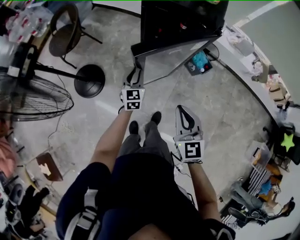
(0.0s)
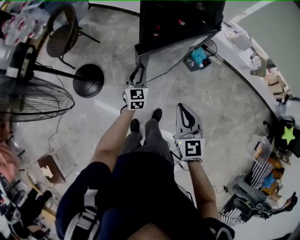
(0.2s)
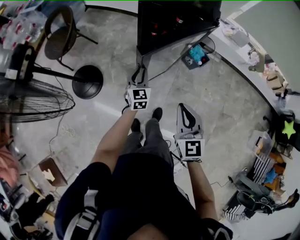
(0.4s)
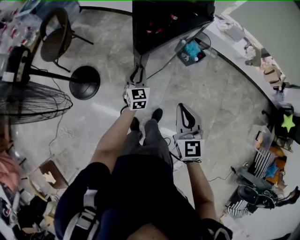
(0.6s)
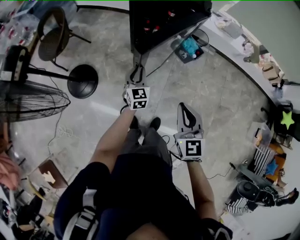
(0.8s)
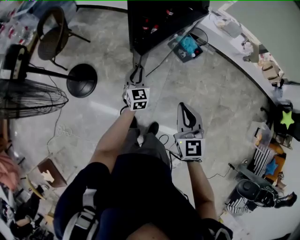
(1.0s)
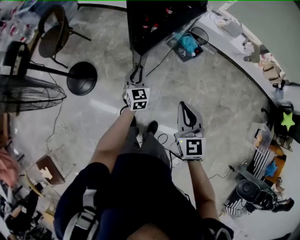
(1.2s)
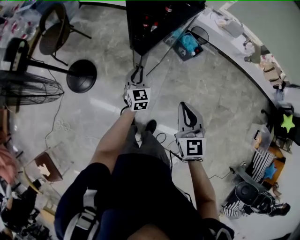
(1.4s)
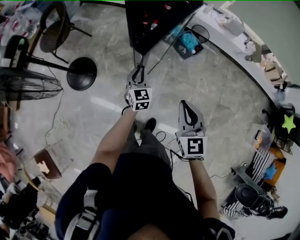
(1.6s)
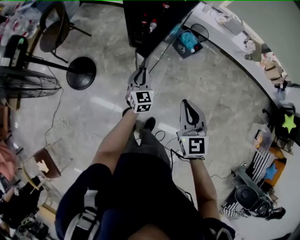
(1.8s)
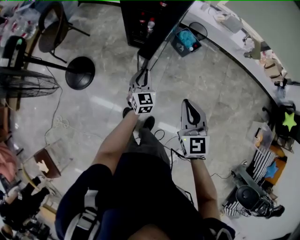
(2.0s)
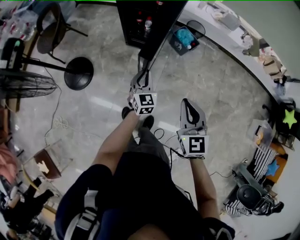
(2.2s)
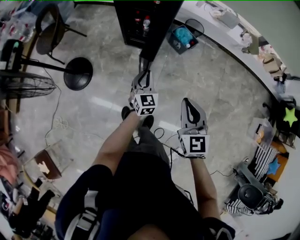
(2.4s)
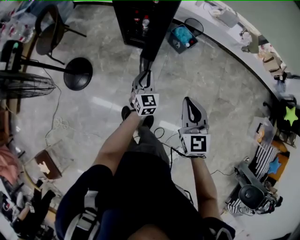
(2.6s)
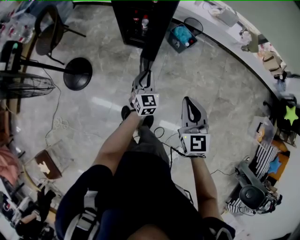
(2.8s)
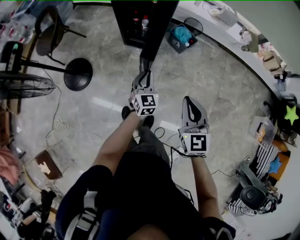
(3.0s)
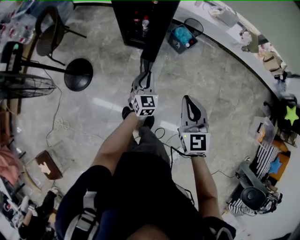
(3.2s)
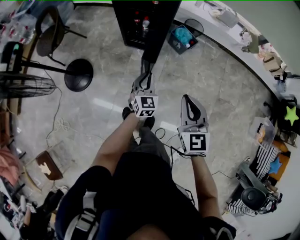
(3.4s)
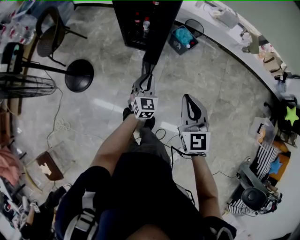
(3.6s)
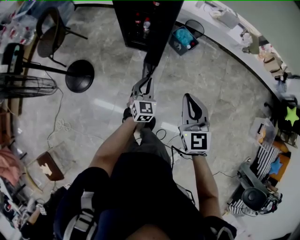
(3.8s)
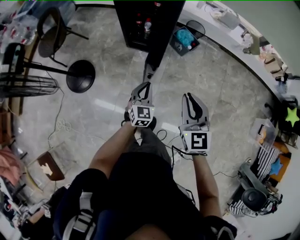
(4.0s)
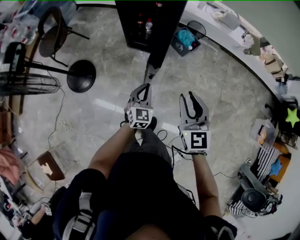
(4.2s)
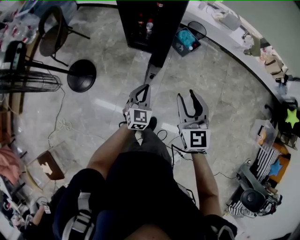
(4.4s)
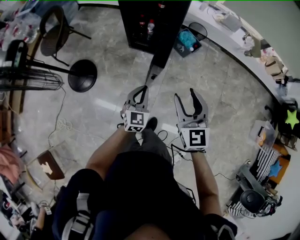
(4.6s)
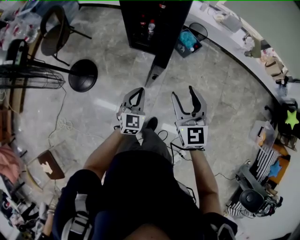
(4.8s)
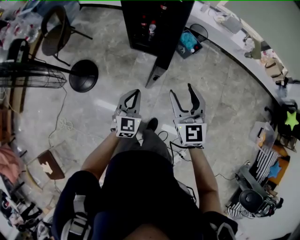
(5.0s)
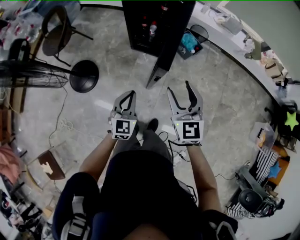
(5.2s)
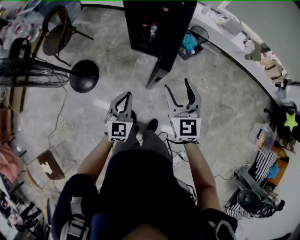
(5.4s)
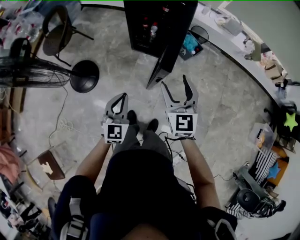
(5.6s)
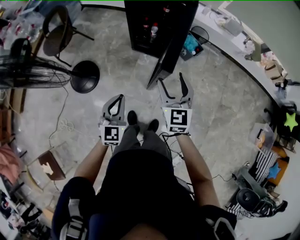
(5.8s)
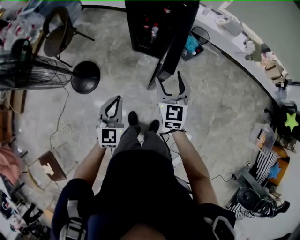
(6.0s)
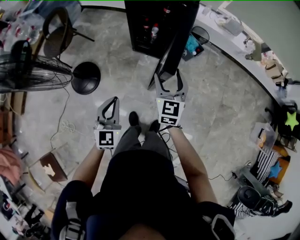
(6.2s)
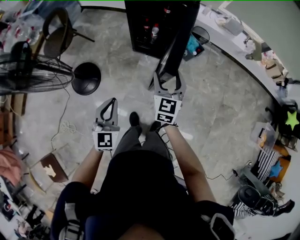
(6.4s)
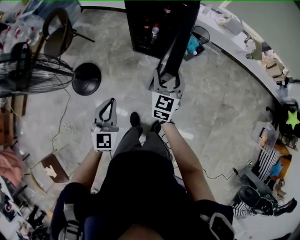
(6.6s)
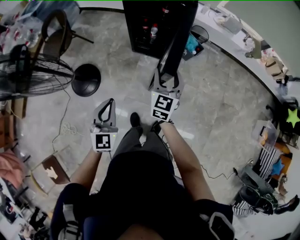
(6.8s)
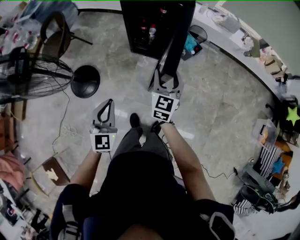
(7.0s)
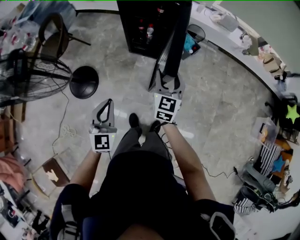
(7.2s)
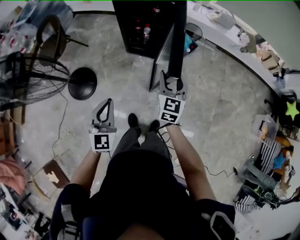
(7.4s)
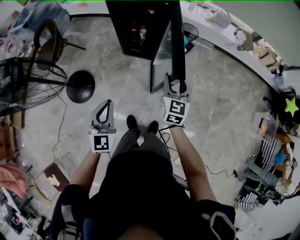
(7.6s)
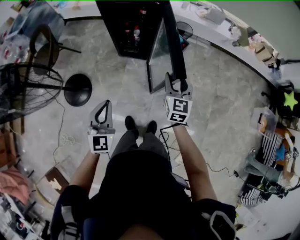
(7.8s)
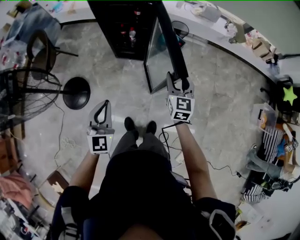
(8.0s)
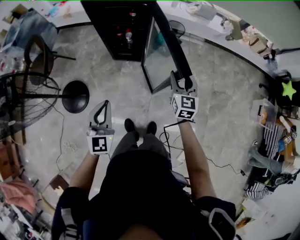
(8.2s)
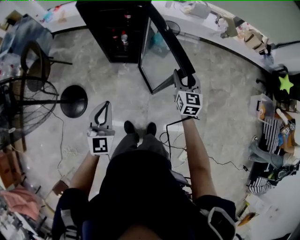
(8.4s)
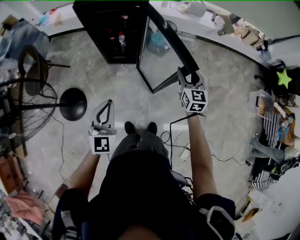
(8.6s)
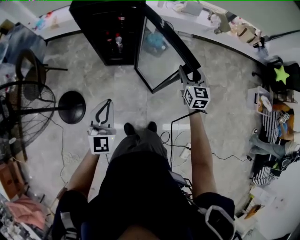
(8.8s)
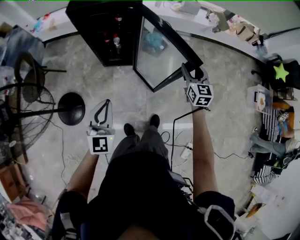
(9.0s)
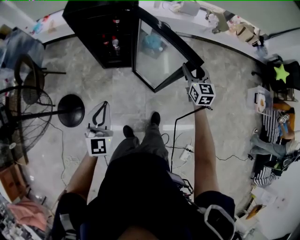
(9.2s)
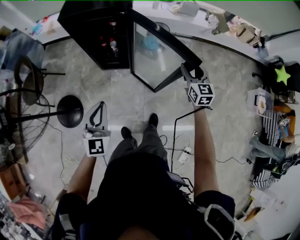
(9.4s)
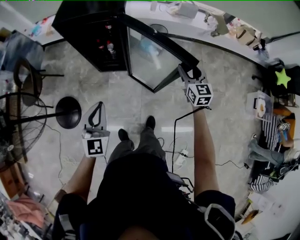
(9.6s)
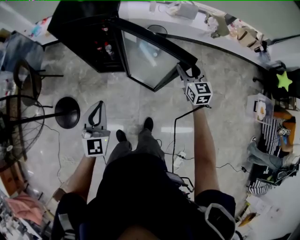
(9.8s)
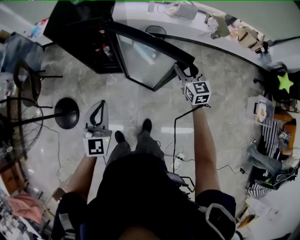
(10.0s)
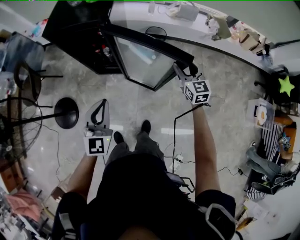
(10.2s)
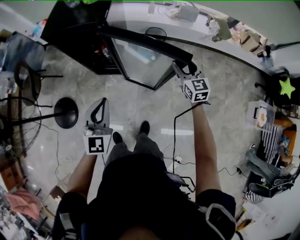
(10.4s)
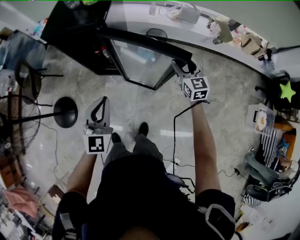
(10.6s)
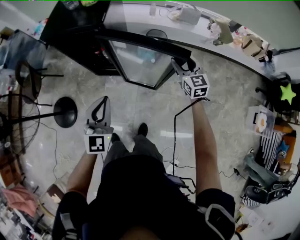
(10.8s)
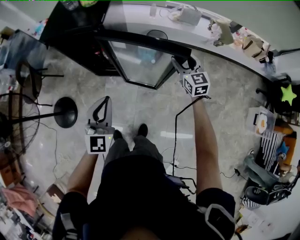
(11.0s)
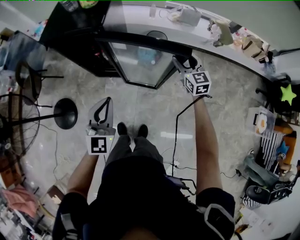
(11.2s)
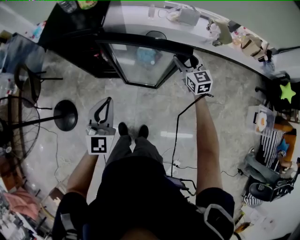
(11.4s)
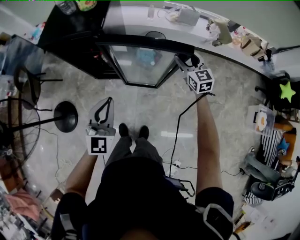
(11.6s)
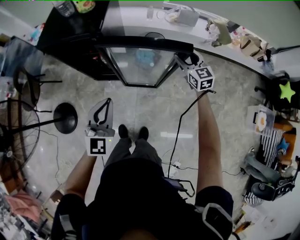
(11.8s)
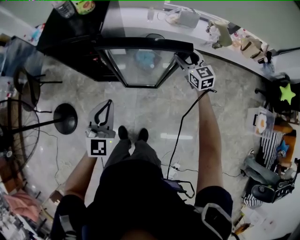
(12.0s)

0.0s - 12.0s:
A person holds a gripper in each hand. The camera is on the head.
0.0s - 1.6s: The grippers both shift backward and to the right by some 15 cm.
1.6s - 3.0s: The left gripper travels to the right and backward by some 10 cm; the right gripper moves to the right, some 10 cm.
3.0s - 4.4s: The right gripper changes place by about 5 cm, and opens its fingers. Meanwhile the left gripper moves backward, approximately 5 cm.
4.4s - 6.0s: The right gripper heads to the left and forward, covering roughly 15 cm, and opens up. The left gripper is displaced to the left and upward by roughly 20 cm.
6.0s - 7.6s: The right gripper heads to the right, covering some 10 cm.
7.6s - 9.0s: The right gripper is displaced to the right and forward by approximately 20 cm. Meanwhile the left gripper moves forward, about 5 cm.
9.0s - 10.4s: The left gripper heads to the right and forward, covering some 25 cm. The right gripper shifts some 20 cm forward and to the right.
10.4s - 12.0s: The right gripper is displaced forward by roughly 10 cm; the left gripper shifts approximately 5 cm forward.

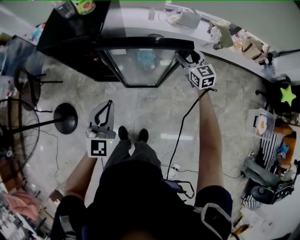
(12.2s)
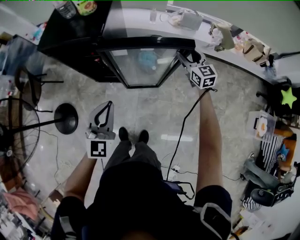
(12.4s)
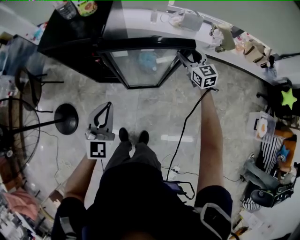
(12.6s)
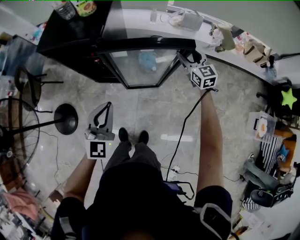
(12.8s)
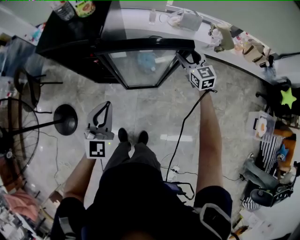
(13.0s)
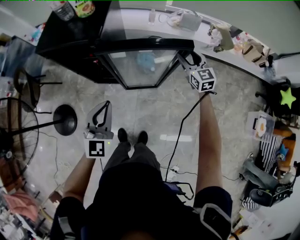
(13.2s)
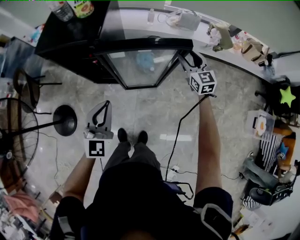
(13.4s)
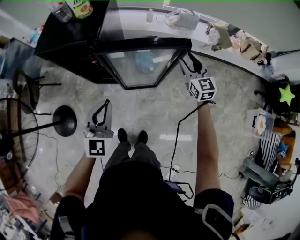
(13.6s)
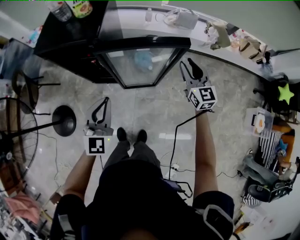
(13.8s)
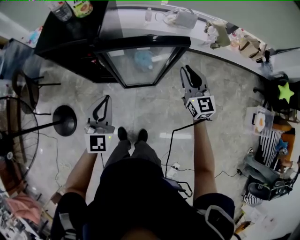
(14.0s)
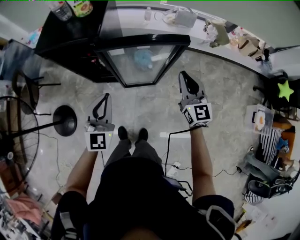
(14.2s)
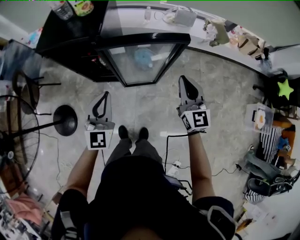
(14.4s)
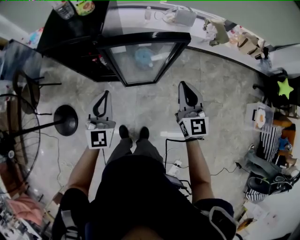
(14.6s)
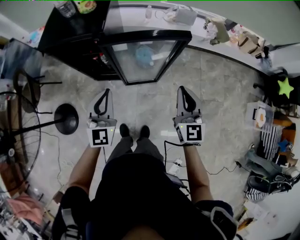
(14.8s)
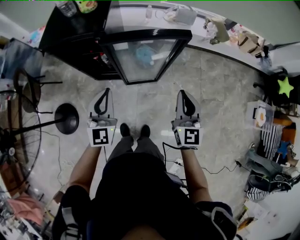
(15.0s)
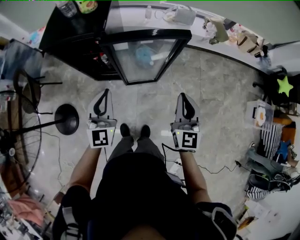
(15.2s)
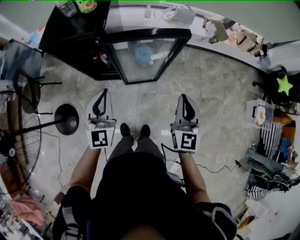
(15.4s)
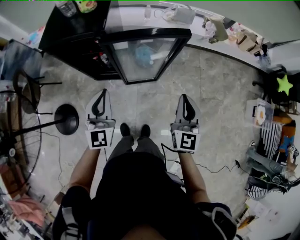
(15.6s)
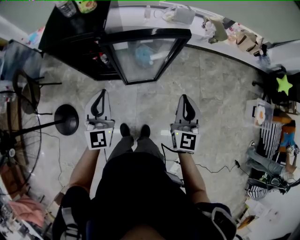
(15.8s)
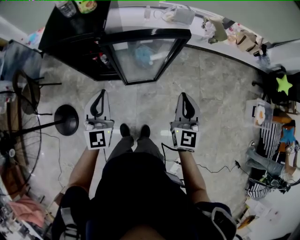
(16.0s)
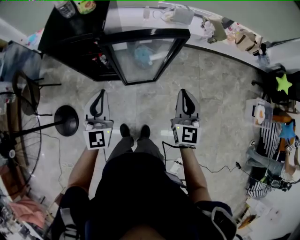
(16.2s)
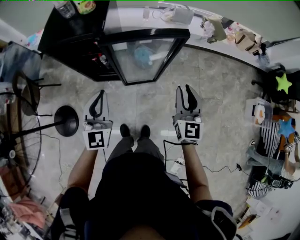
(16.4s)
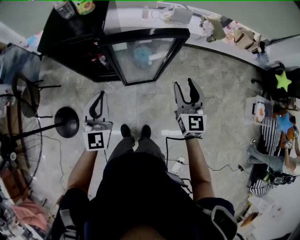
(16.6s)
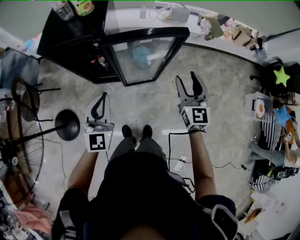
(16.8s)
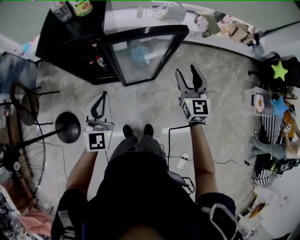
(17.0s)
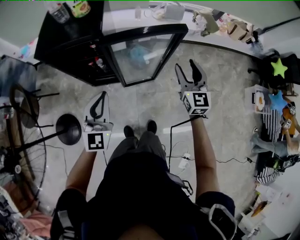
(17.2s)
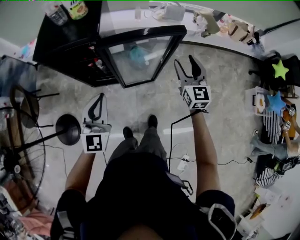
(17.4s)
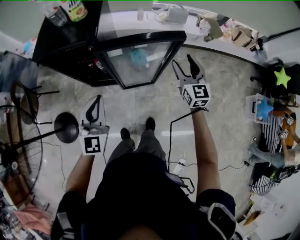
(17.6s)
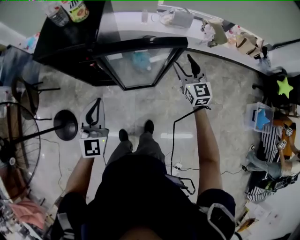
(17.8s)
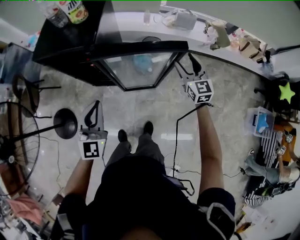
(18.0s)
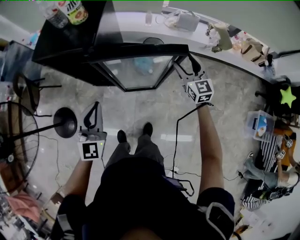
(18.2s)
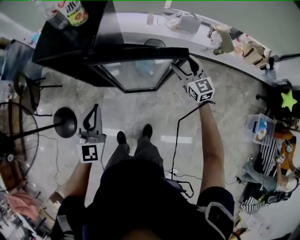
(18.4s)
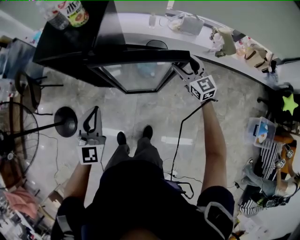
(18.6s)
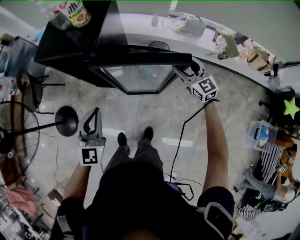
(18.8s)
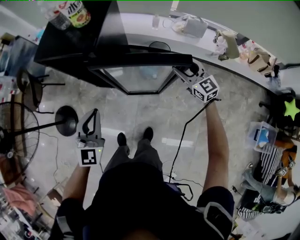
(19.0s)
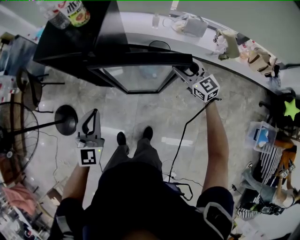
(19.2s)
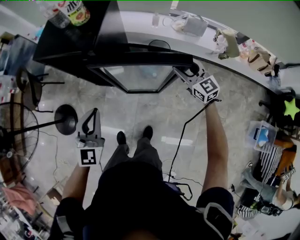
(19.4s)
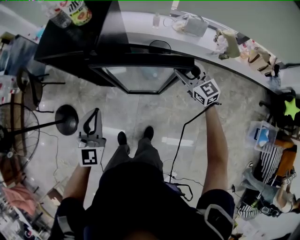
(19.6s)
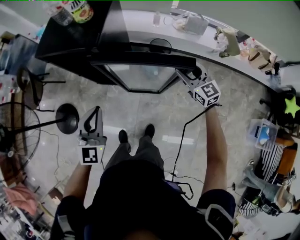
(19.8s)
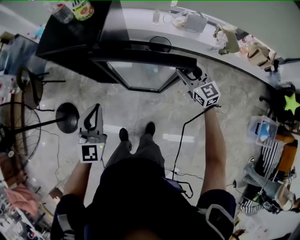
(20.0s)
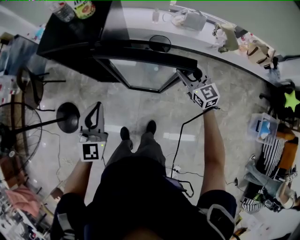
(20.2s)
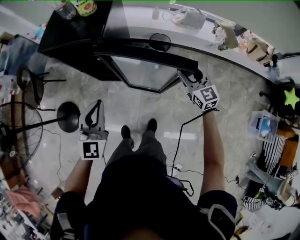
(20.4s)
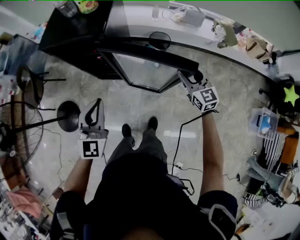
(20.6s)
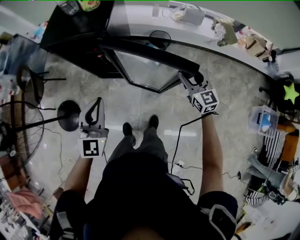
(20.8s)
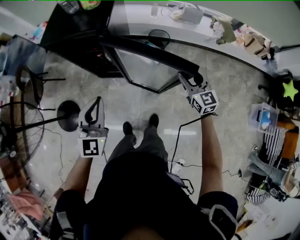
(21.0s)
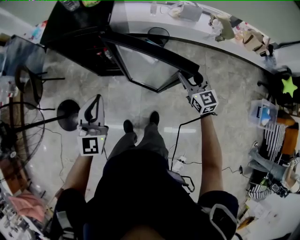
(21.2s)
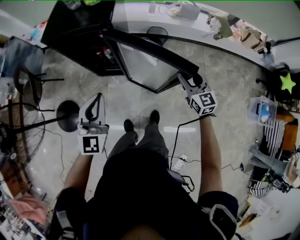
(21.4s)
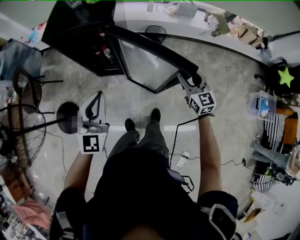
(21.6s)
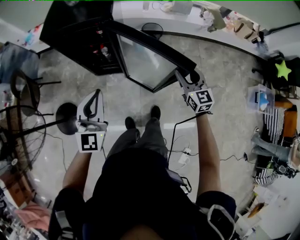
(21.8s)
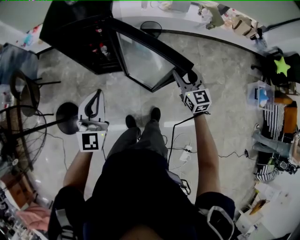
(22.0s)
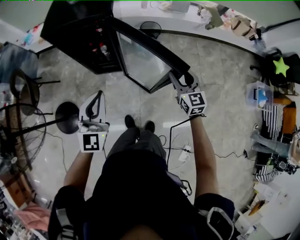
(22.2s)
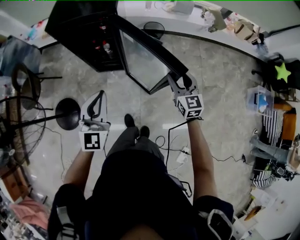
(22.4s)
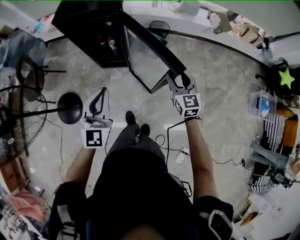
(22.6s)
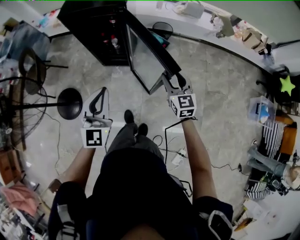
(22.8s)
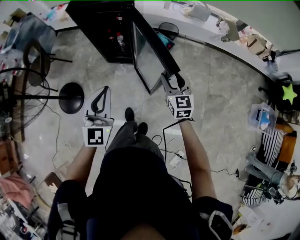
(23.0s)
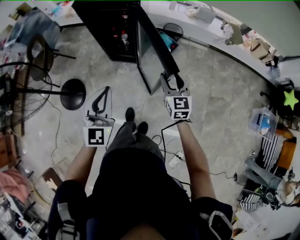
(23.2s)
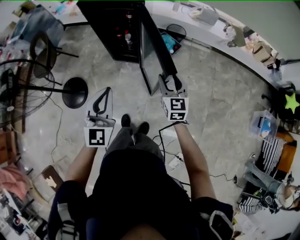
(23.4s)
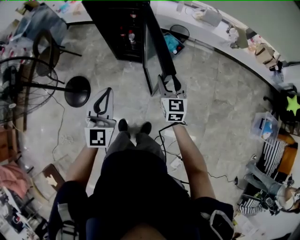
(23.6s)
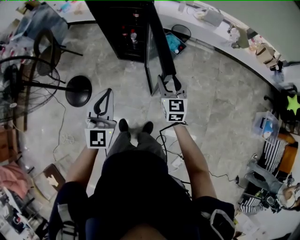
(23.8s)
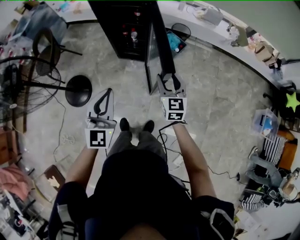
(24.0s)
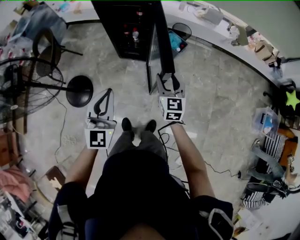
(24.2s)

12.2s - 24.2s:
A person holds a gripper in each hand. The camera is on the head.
12.2s - 13.8s: The right gripper goes approximately 5 cm backward.
13.8s - 15.2s: The right gripper travels backward by about 20 cm.
15.2s - 16.6s: The right gripper opens its fingers.
16.6s - 18.2s: The right gripper goes approximately 20 cm forward. The left gripper goes roughly 5 cm forward.
19.8s - 21.2s: The left gripper moves to the left and backward, roughly 10 cm; the right gripper is displaced backward and to the left by roughly 15 cm.
21.2s - 22.6s: The left gripper shifts some 10 cm backward; the right gripper travels backward and to the left by about 15 cm.
22.6s - 24.2s: The left gripper goes about 15 cm backward and to the left, while the right gripper shifts about 20 cm to the left and backward.
